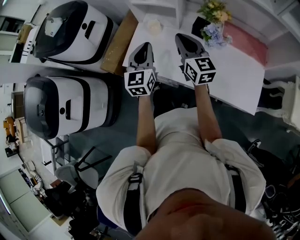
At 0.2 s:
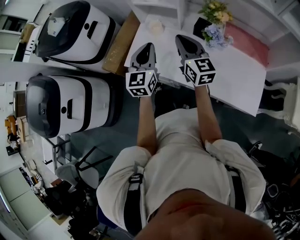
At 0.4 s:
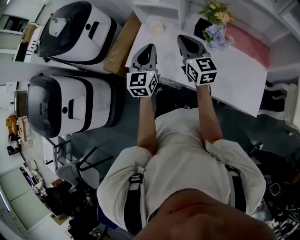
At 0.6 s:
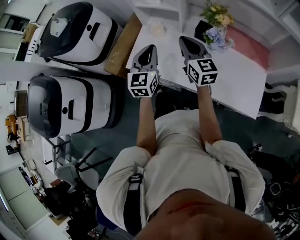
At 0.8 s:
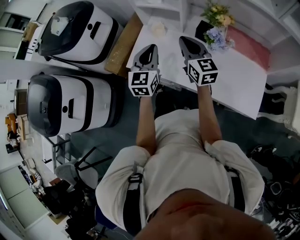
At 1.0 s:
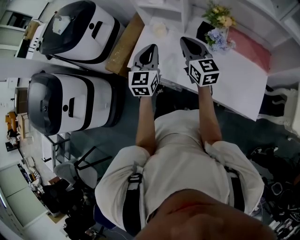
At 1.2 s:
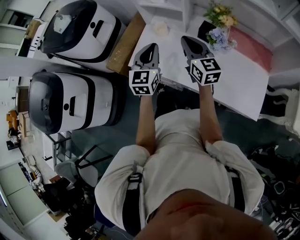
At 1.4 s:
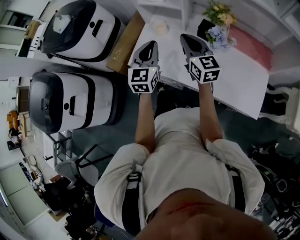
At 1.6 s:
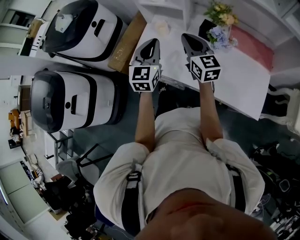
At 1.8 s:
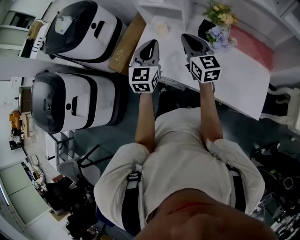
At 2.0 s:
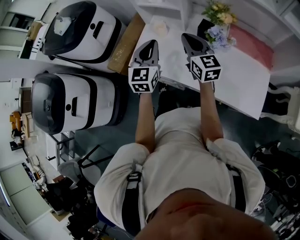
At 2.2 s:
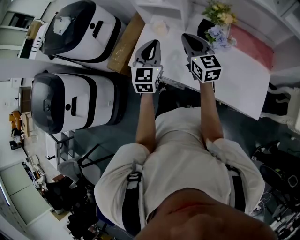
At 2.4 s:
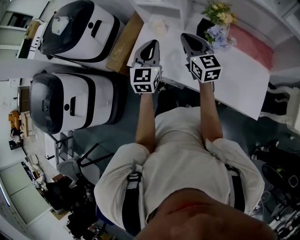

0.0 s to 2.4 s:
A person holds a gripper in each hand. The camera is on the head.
0.0 to 1.2 s: The two grippers keep their place.
1.2 to 2.4 s: There are only small adjustments of the grippers.

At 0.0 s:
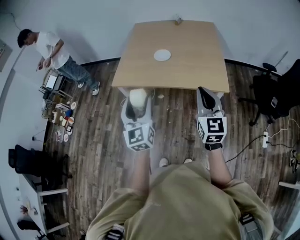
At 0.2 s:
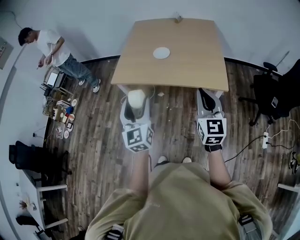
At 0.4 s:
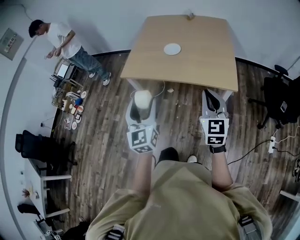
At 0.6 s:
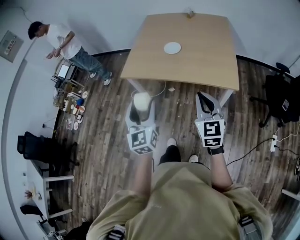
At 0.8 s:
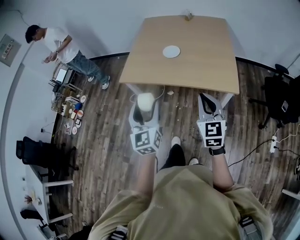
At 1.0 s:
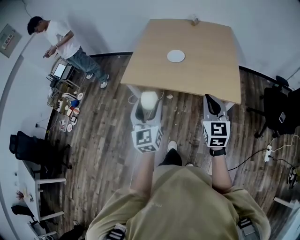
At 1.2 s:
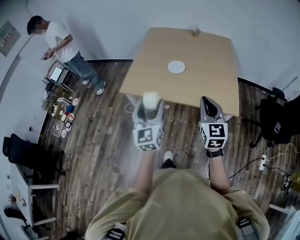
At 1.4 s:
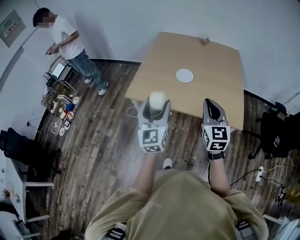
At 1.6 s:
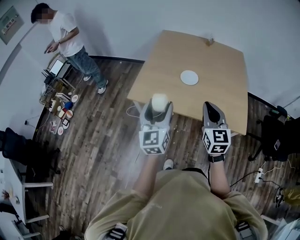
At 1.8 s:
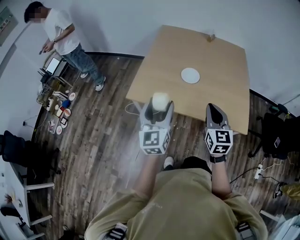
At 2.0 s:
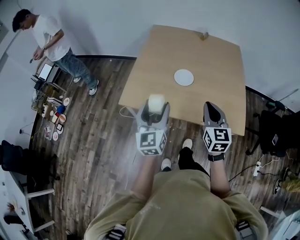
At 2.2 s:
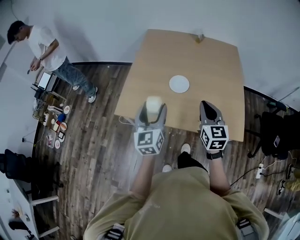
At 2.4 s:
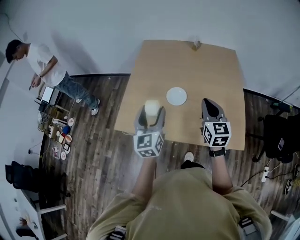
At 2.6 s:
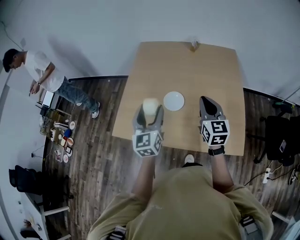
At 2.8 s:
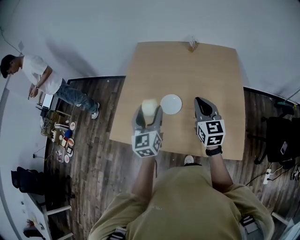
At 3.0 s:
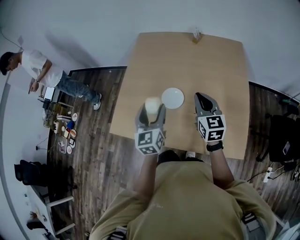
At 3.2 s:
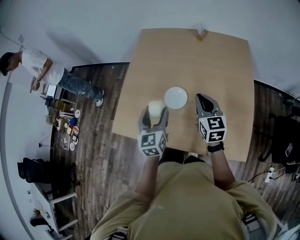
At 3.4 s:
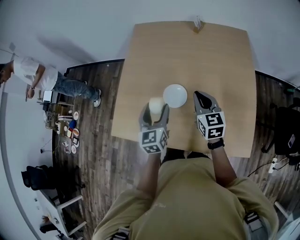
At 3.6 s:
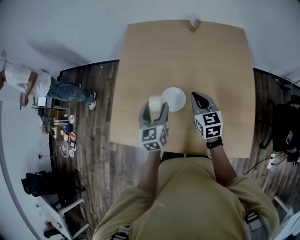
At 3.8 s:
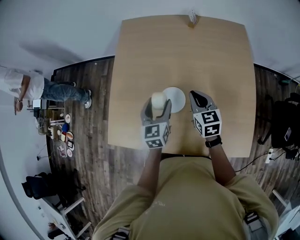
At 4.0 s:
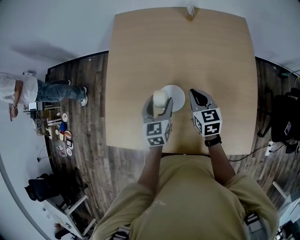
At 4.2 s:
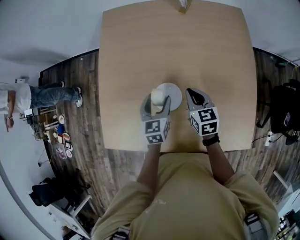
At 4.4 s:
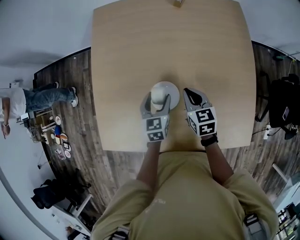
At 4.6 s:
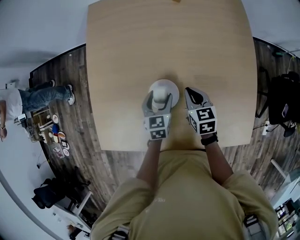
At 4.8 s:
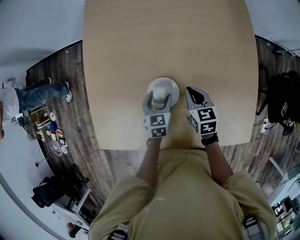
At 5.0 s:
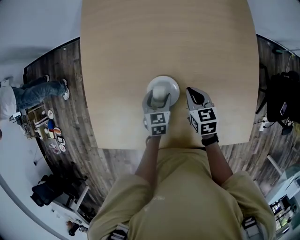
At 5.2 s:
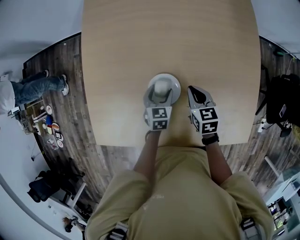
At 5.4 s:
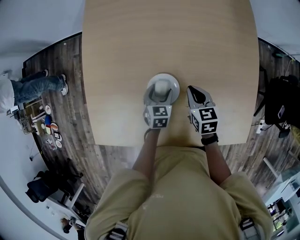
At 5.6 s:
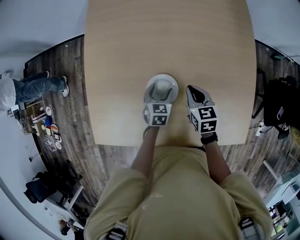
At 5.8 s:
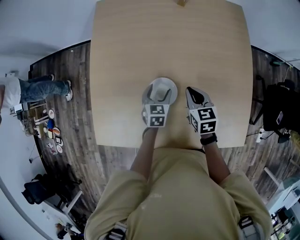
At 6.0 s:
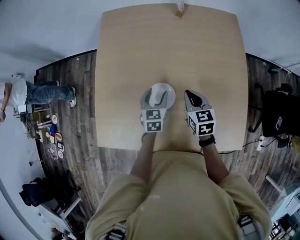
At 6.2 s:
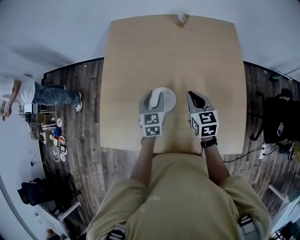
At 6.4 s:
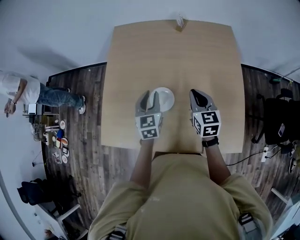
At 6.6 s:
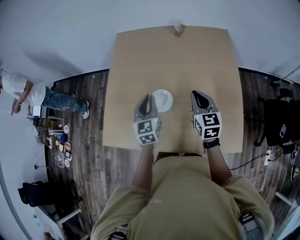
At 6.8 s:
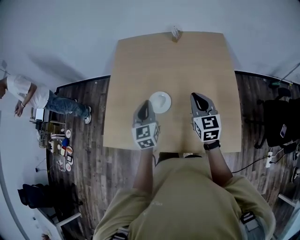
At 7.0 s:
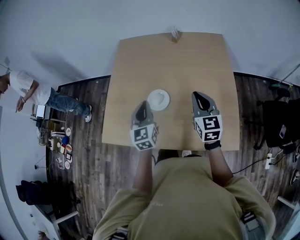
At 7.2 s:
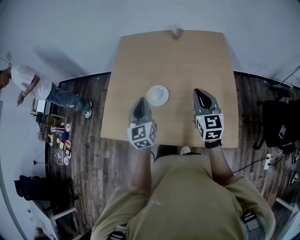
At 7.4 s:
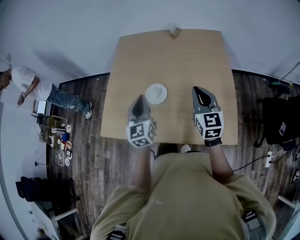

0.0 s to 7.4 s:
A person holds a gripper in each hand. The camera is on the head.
0.0 to 1.4 s: The right gripper heads forward and to the left, covering some 20 cm. Meanwhile the left gripper heads forward, covering approximately 15 cm.
1.4 to 3.0 s: The two grippers go some 35 cm forward.
3.0 to 4.4 s: The grippers both shift downward and forward by roughly 25 cm. The right gripper changes its angle by some 30 degrees. The left gripper swivels some 30 degrees.
4.4 to 6.0 s: The left gripper travels downward and back again, approximately 10 cm each way.
6.0 to 7.4 s: The right gripper shifts approximately 25 cm upward, backward and to the right, and turns by some 30 degrees; the left gripper shifts approximately 30 cm upward and backward, rotates roughly 30 degrees, and closes its fingers.

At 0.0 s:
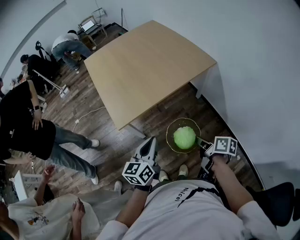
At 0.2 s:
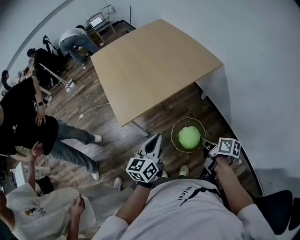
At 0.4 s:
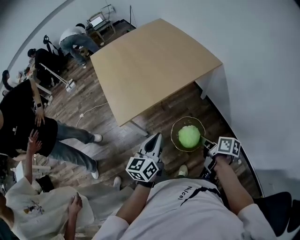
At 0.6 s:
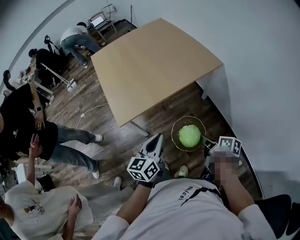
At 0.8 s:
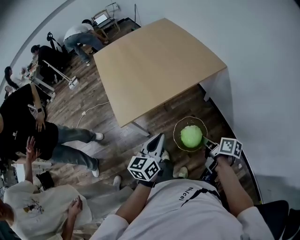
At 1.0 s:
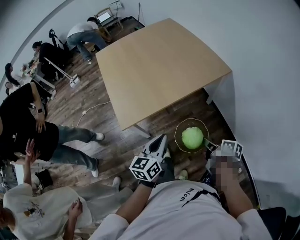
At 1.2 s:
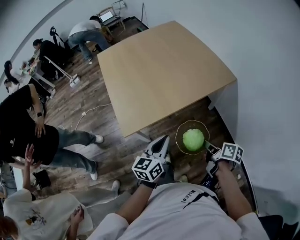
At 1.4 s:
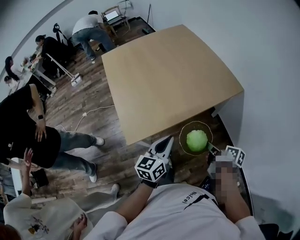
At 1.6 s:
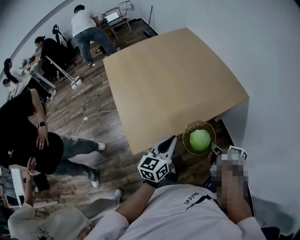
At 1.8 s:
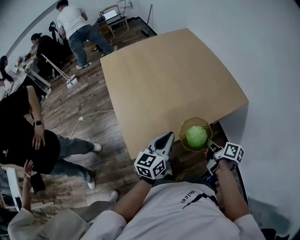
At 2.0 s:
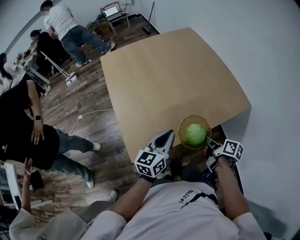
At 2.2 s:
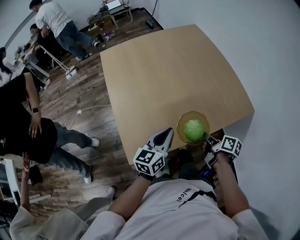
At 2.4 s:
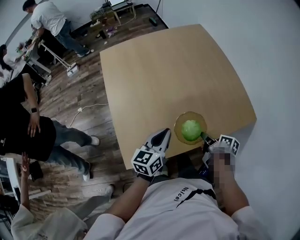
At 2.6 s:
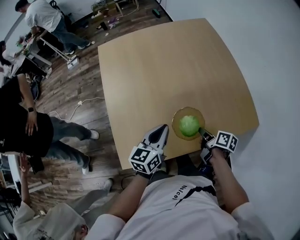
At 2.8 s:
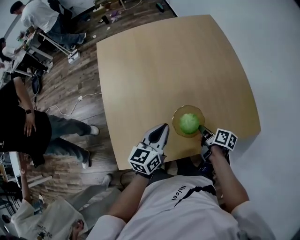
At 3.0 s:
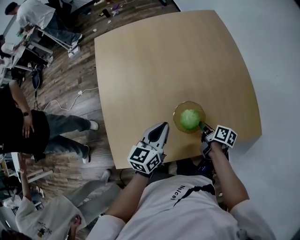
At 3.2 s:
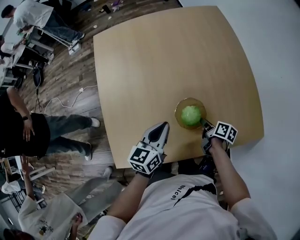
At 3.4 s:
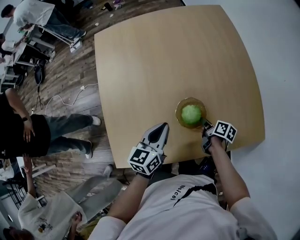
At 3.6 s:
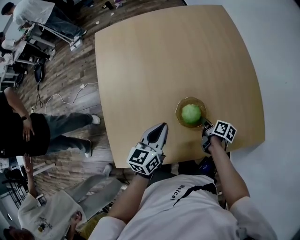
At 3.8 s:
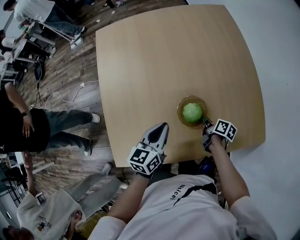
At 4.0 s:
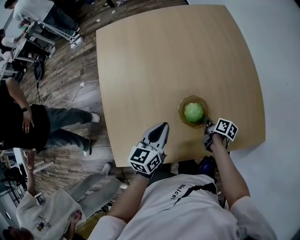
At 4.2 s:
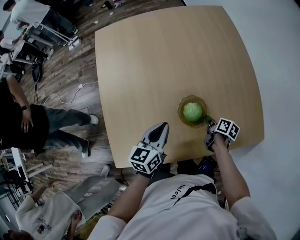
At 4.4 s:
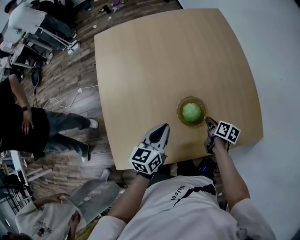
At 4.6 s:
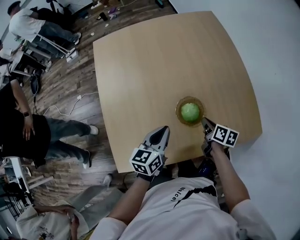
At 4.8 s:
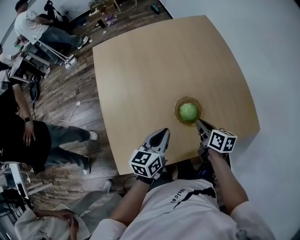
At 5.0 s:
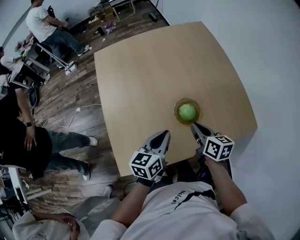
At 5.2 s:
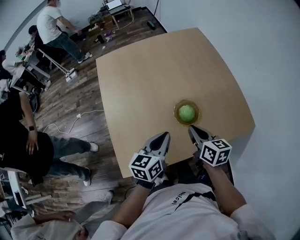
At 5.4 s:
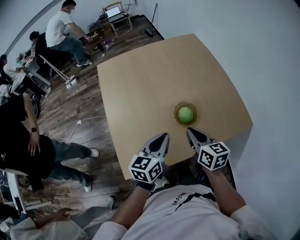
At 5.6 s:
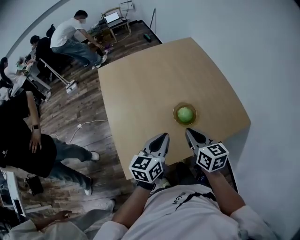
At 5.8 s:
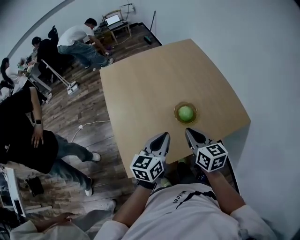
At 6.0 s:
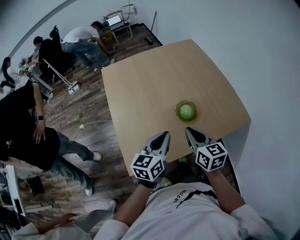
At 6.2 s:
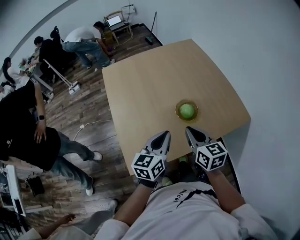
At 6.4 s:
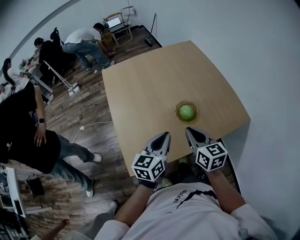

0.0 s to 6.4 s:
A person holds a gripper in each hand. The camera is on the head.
0.0 to 1.6 s: Both grippers travel together forward, approximately 25 cm.
1.6 to 3.2 s: The right gripper goes approximately 40 cm forward and downward. The left gripper heads forward, covering roughly 30 cm.
3.2 to 4.8 s: The right gripper heads upward, covering approximately 10 cm, and changes its angle by roughly 30 degrees.
4.8 to 6.4 s: The right gripper is displaced upward, backward and to the left by roughly 25 cm, and turns by approximately 30 degrees; the left gripper travels backward and upward by about 15 cm.

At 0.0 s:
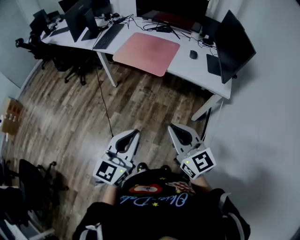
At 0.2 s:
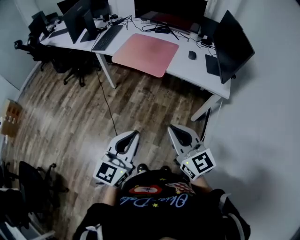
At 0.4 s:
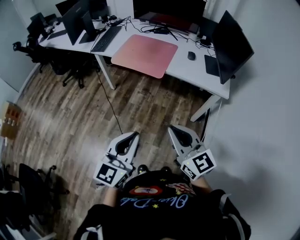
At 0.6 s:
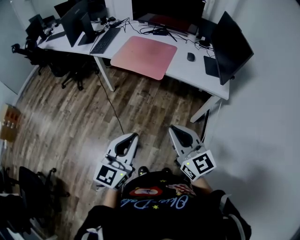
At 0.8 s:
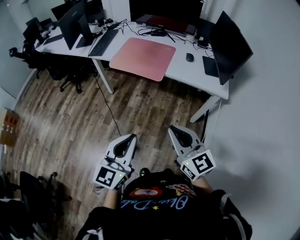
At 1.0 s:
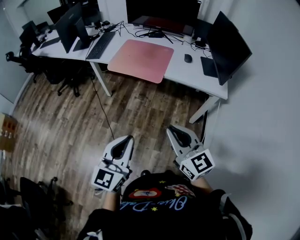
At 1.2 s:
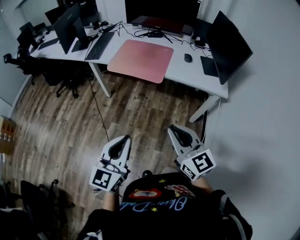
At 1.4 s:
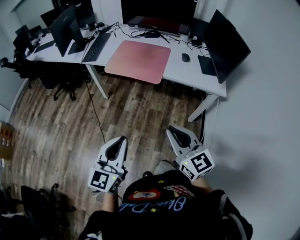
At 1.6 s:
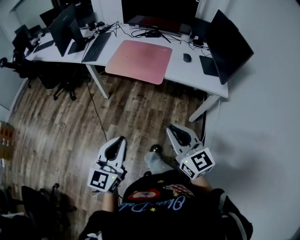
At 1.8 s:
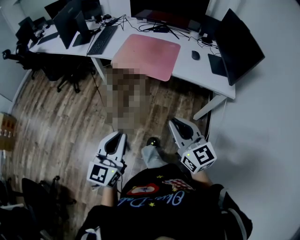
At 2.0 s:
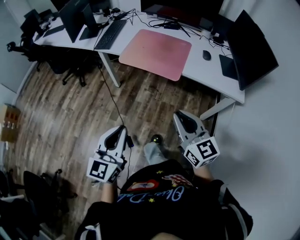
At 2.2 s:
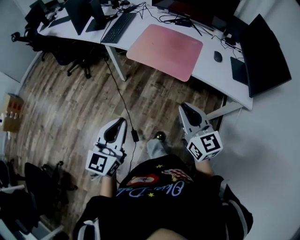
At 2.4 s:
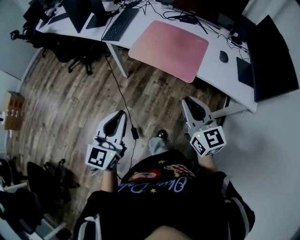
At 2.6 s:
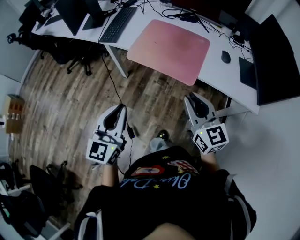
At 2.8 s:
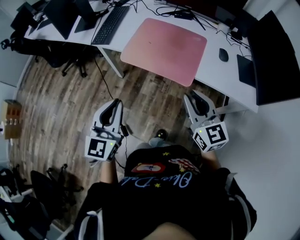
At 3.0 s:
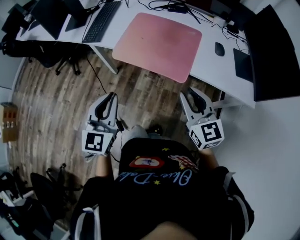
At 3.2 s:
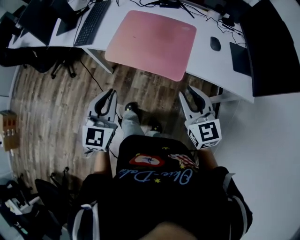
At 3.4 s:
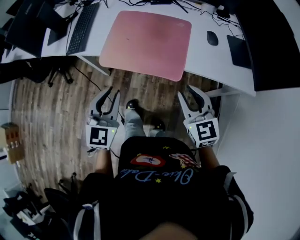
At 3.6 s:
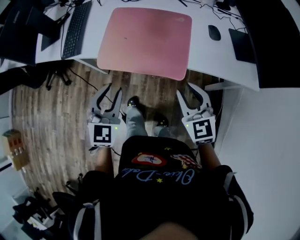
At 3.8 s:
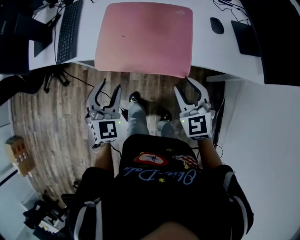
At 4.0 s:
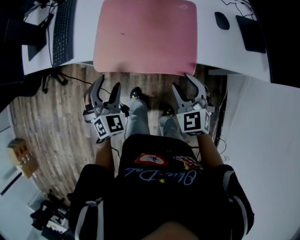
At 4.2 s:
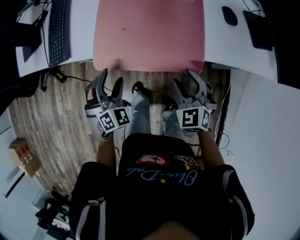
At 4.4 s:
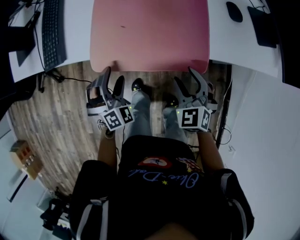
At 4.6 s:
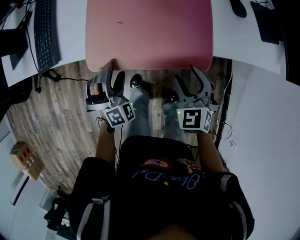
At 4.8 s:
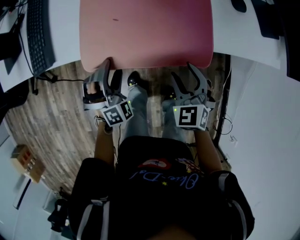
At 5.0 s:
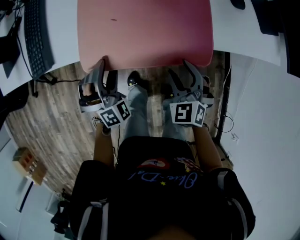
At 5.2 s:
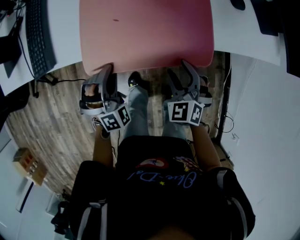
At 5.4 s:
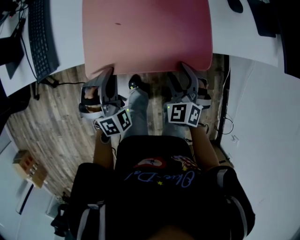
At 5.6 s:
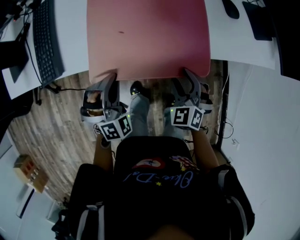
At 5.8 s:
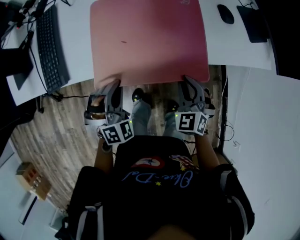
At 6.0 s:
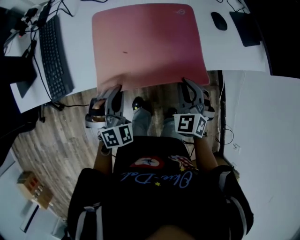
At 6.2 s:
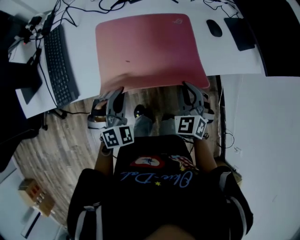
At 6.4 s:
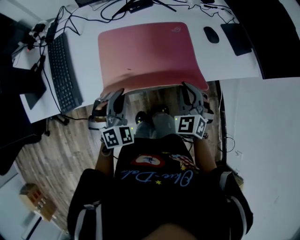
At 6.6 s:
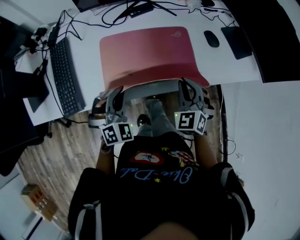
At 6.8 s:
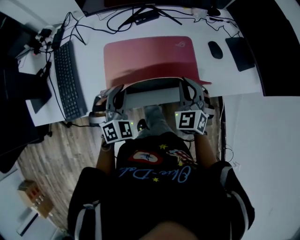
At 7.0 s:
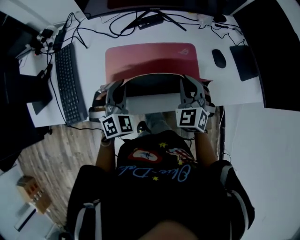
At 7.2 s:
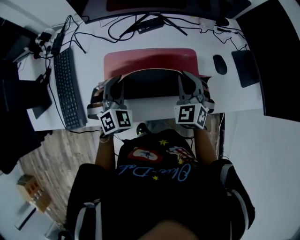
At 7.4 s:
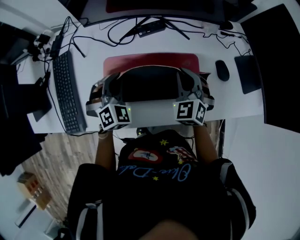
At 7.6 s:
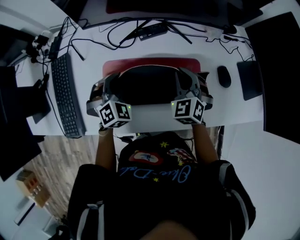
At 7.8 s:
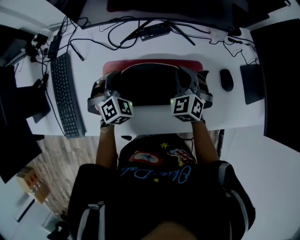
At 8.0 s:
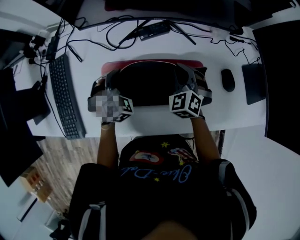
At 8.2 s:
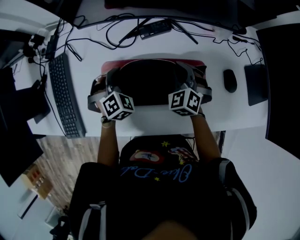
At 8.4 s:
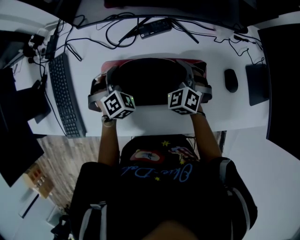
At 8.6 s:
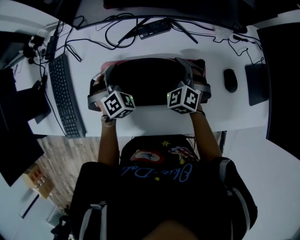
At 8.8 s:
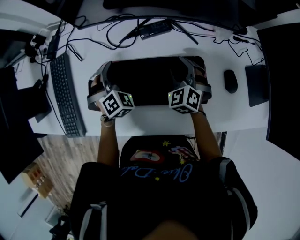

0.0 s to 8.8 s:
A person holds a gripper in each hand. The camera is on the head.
0.0 to 1.4 s: The left gripper moves to the left, some 10 cm. The right gripper moves to the left, roughly 5 cm.
1.4 to 3.0 s: The two grippers go roughly 30 cm forward.
3.0 to 4.4 s: The two grippers go about 25 cm downward and forward. The right gripper rotates approximately 40 degrees, and opens, while the left gripper rotates around the line of its fingers by approximately 60 degrees, clockwise from behind, and opens.
4.4 to 5.8 s: The right gripper closes its fingers. The left gripper shifts by about 5 cm, and closes its fingers.
5.8 to 7.4 s: The two grippers go roughly 25 cm forward.
7.4 to 8.8 s: The right gripper is displaced downward and forward by some 10 cm, and opens; the left gripper goes approximately 10 cm forward and downward, and opens its fingers.
